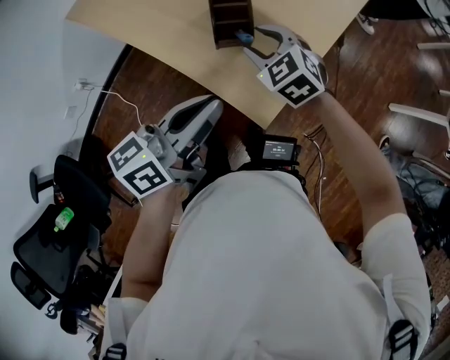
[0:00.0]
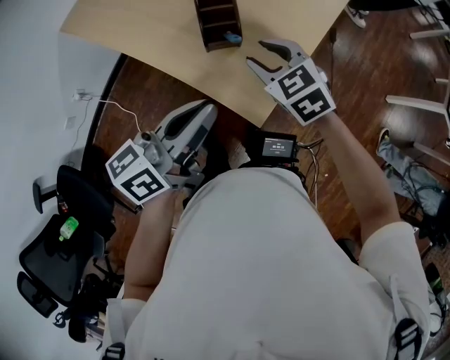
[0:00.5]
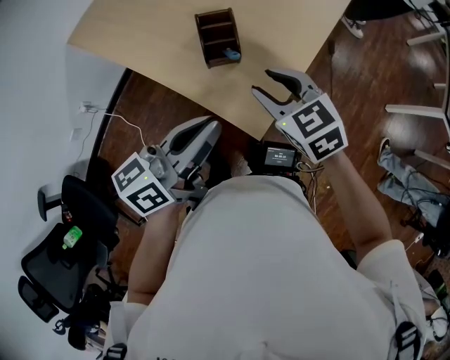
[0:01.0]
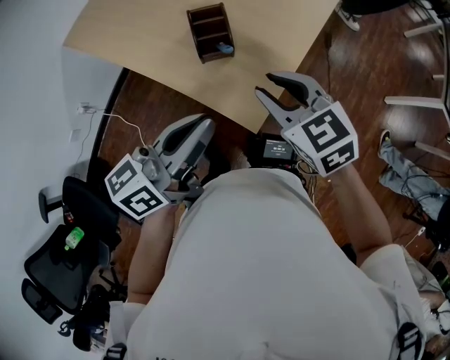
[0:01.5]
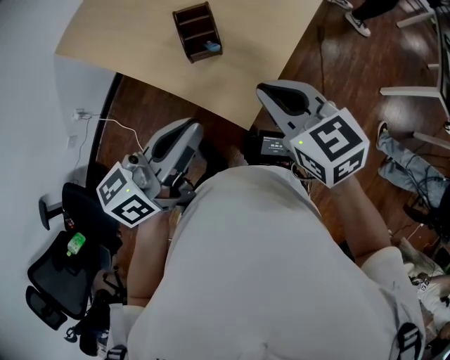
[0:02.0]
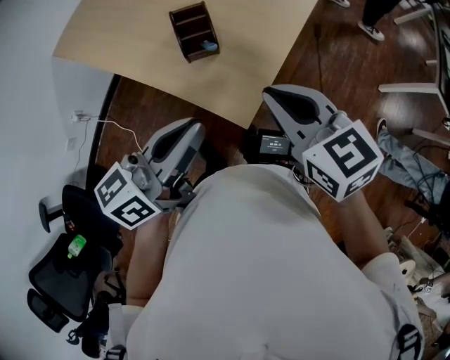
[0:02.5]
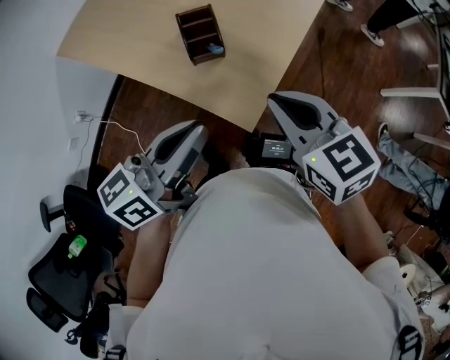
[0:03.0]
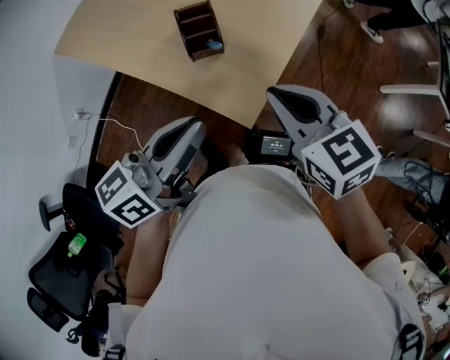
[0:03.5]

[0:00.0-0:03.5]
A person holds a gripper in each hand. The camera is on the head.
0:00.0 to 0:02.0: The left gripper changes place by about 5 cm. Meanwhile the right gripper goes approximately 20 cm backward, upward and to the right, changes its angle by about 30 degrees, and closes its fingers.
0:02.0 to 0:03.5: The grippers move only a little.

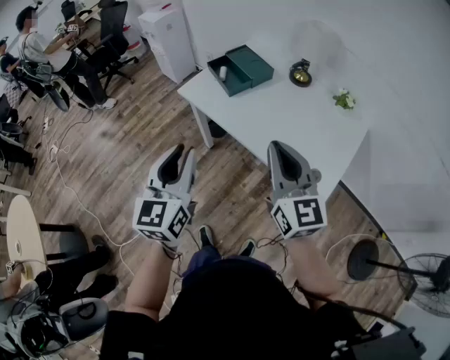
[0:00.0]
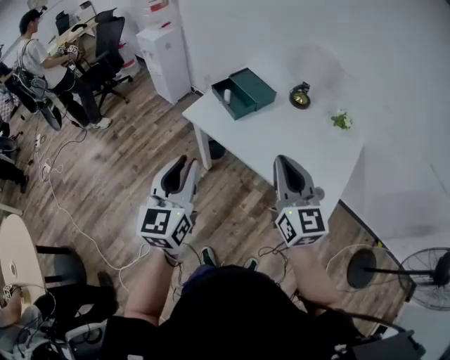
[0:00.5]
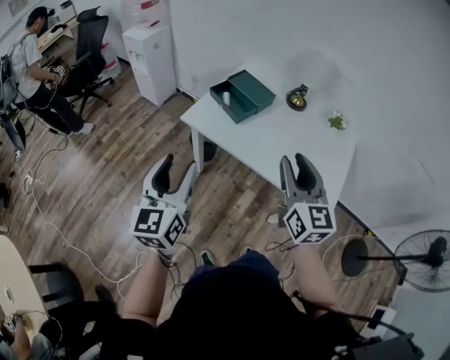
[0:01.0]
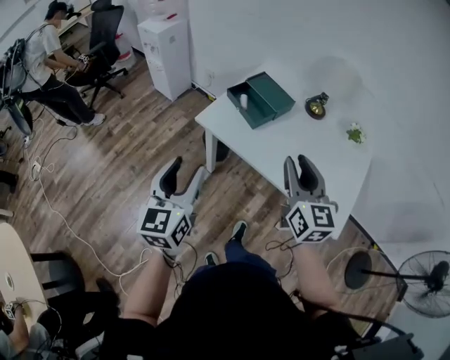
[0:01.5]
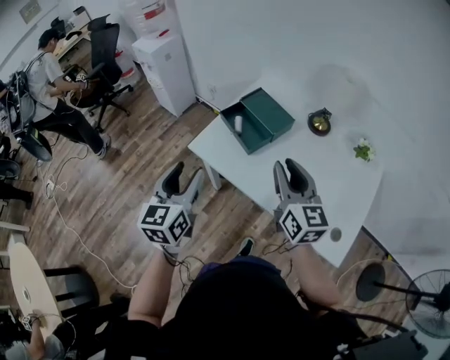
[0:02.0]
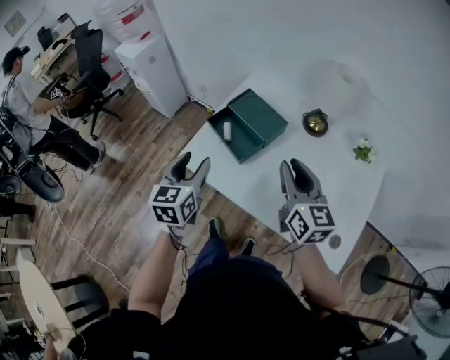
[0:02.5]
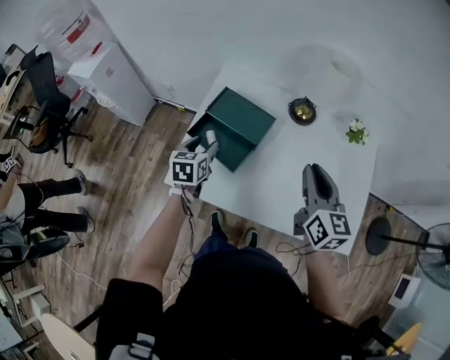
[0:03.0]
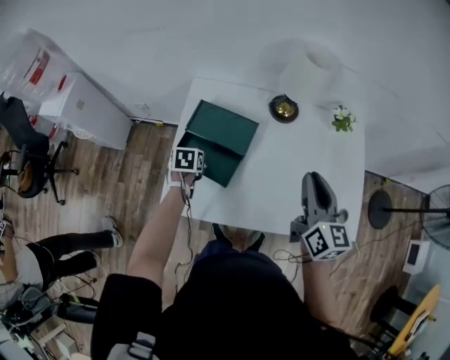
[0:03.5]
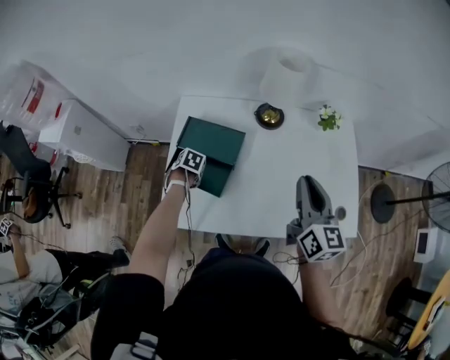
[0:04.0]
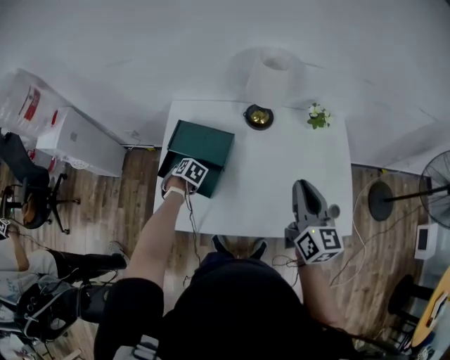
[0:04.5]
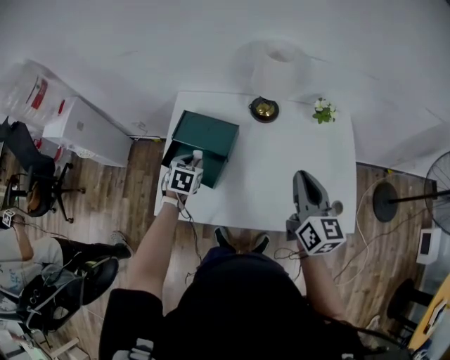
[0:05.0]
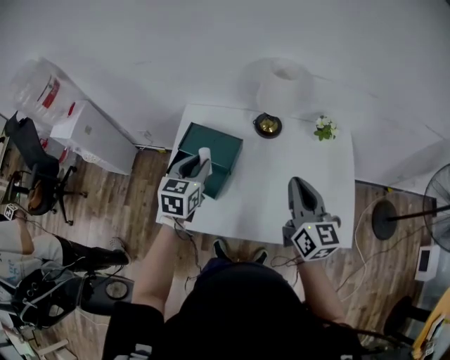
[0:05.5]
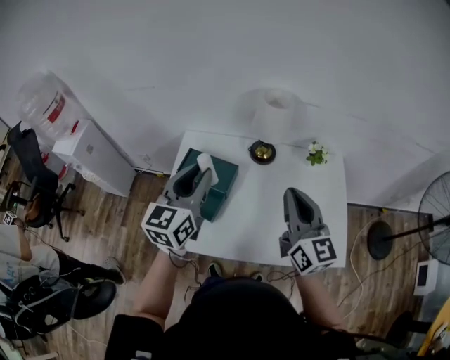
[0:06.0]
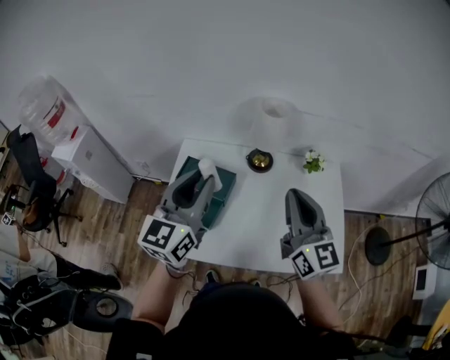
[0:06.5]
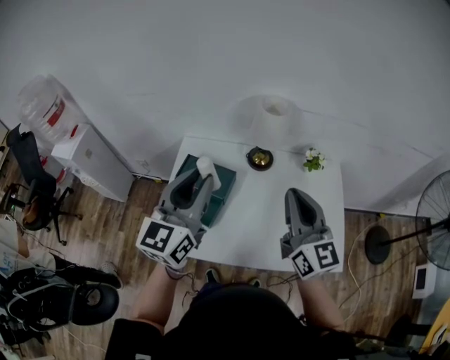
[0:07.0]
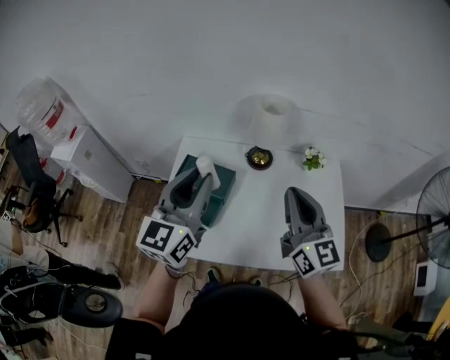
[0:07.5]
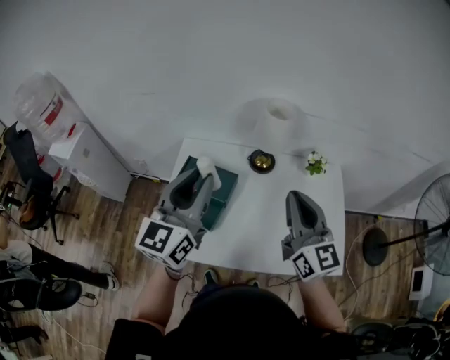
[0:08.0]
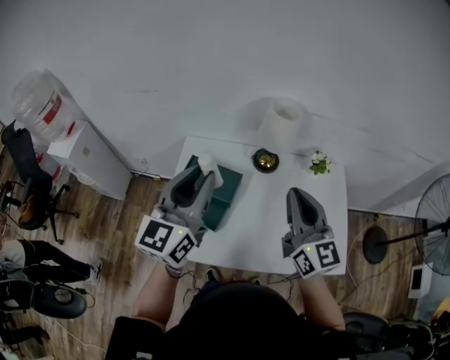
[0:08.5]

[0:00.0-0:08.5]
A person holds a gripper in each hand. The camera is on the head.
0:00.0 to 0:02.0: Both grippers move forward and to the left, roughly 30 cm. The left gripper opens. Meanwhile the right gripper opens its fingers.
0:02.0 to 0:04.0: The right gripper shifts by approximately 20 cm, and changes its angle by some 40 degrees. The left gripper moves approximately 50 cm, and tilts its fingers some 70 degrees downward.
0:04.0 to 0:06.5: The left gripper heads upward, covering roughly 50 cm, angles its fingers upward, by about 90 degrees, and closes; the right gripper is displaced upward by some 15 cm, and rotates some 20 degrees.
0:06.5 to 0:08.5: The right gripper changes place by about 5 cm.

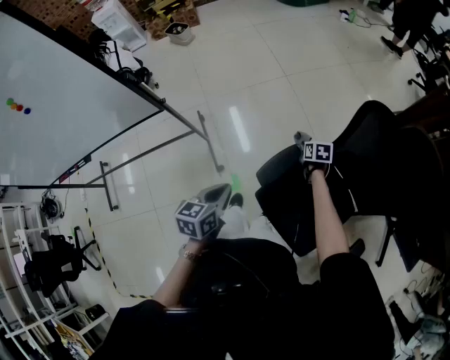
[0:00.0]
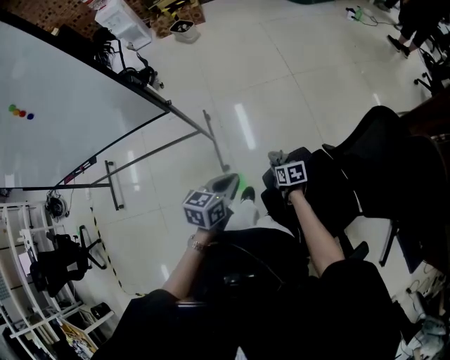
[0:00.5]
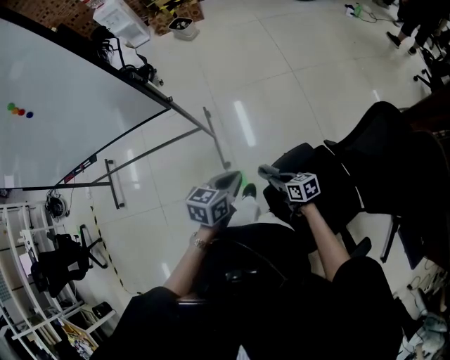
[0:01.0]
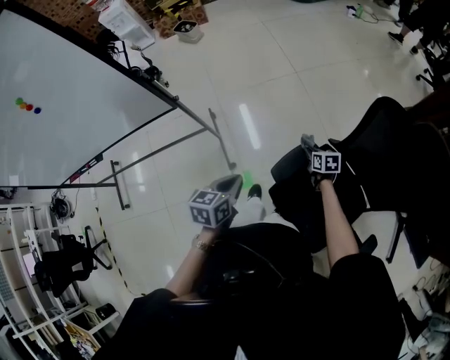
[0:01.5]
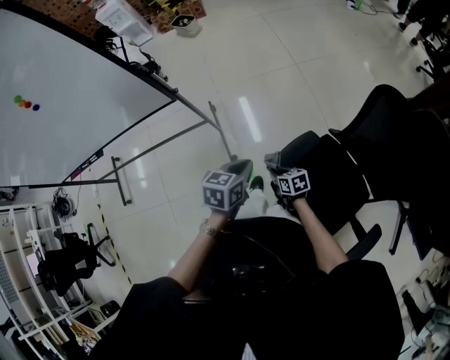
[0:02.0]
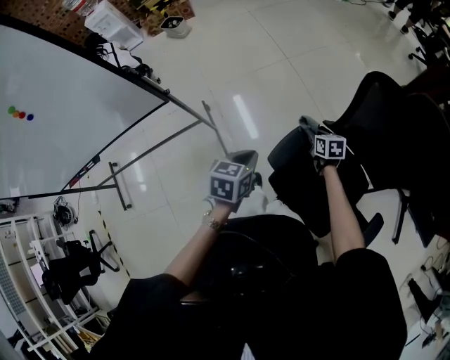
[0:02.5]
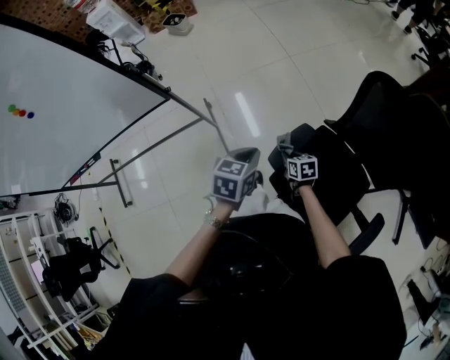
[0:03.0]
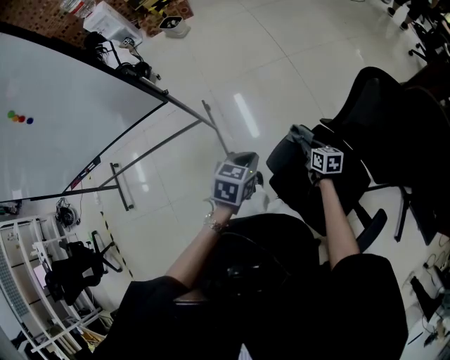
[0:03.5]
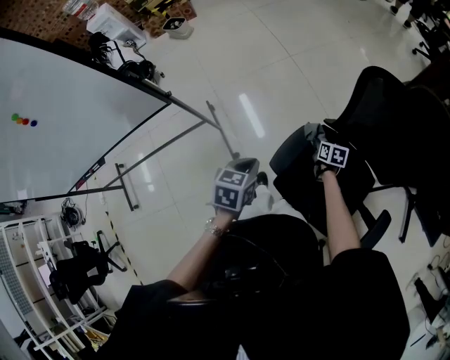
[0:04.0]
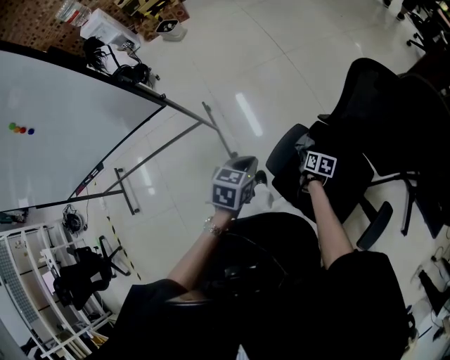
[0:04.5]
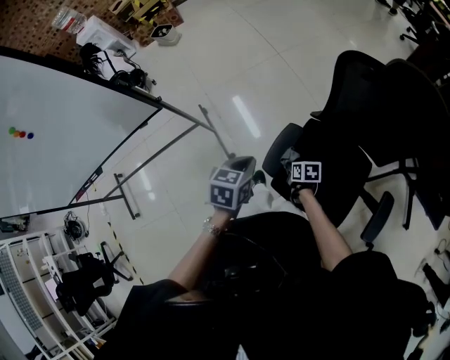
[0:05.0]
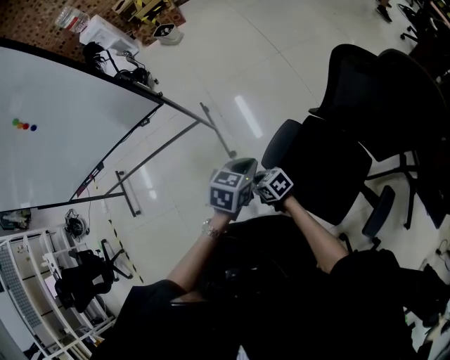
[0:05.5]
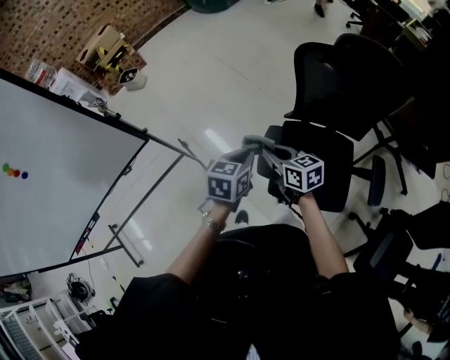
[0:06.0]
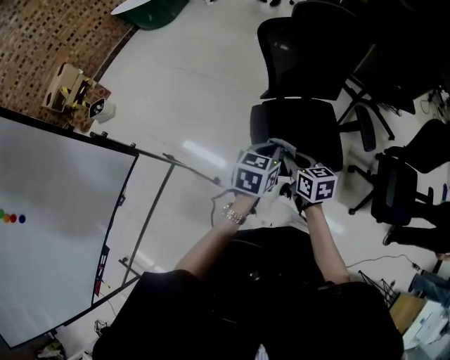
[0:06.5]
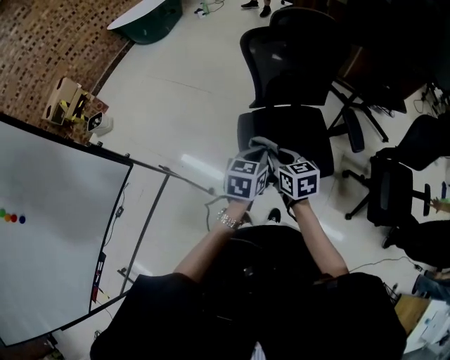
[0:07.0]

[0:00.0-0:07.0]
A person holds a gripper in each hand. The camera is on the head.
0:00.0 to 0:02.0: The right gripper moves left and right over roughly 25 cm, changing direction 2 times, and rotates roughly 30 degrees.
0:02.0 to 0:03.5: The right gripper swings left and right, some 20 cm each way, with 2 reversals, and rotates approximately 20 degrees.
0:03.5 to 0:05.0: The right gripper moves backward and downward, about 15 cm, and changes its angle by roughly 20 degrees.
0:05.0 to 0:07.0: The right gripper goes some 30 cm upward, and changes its angle by approximately 50 degrees, while the left gripper moves approximately 15 cm, and rotates some 40 degrees.

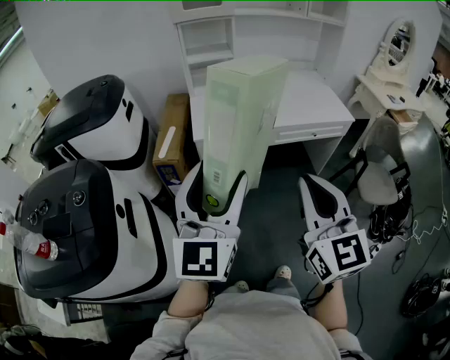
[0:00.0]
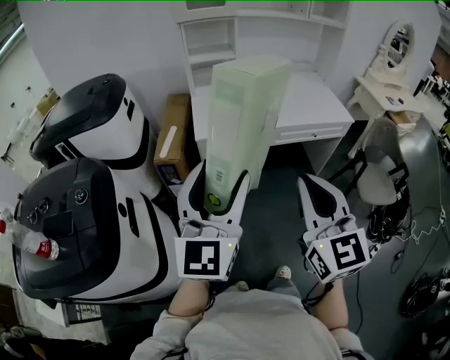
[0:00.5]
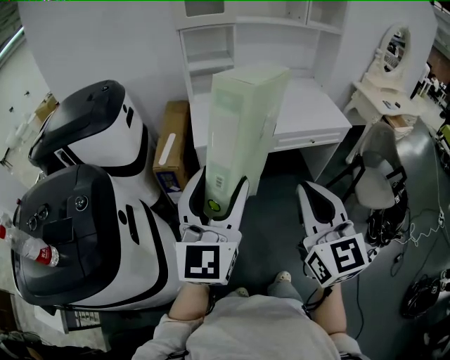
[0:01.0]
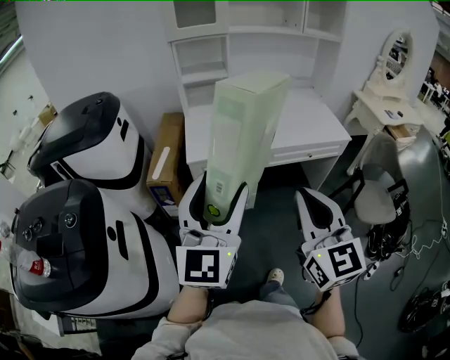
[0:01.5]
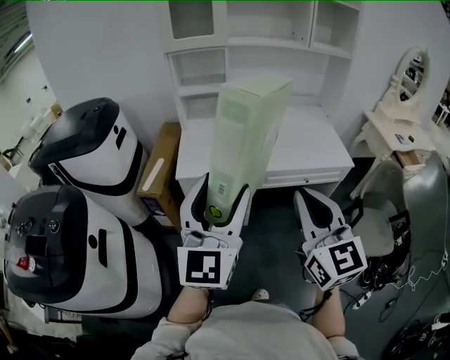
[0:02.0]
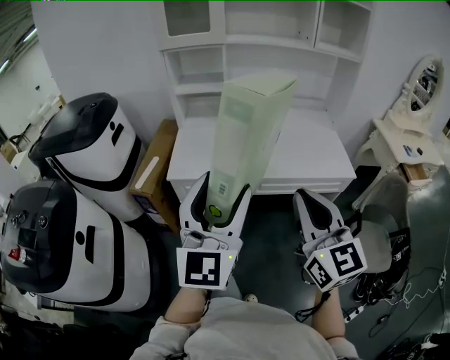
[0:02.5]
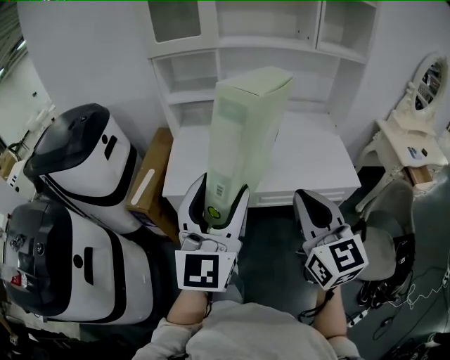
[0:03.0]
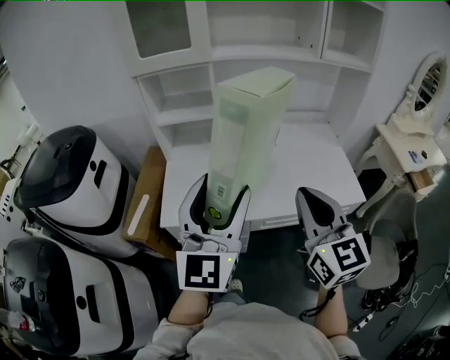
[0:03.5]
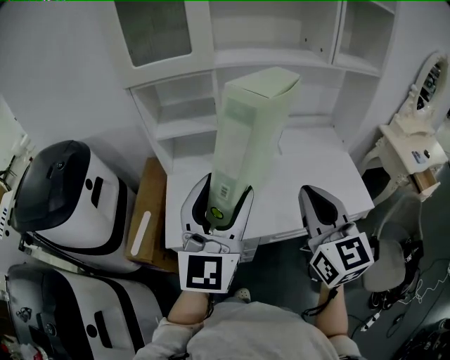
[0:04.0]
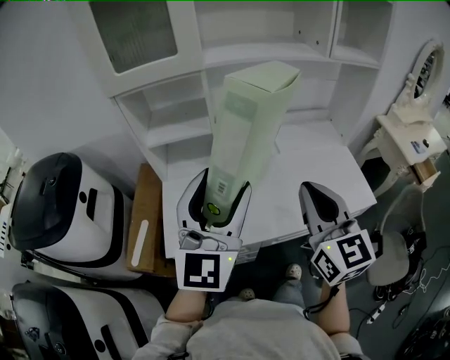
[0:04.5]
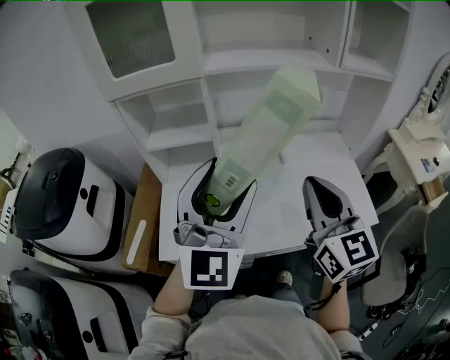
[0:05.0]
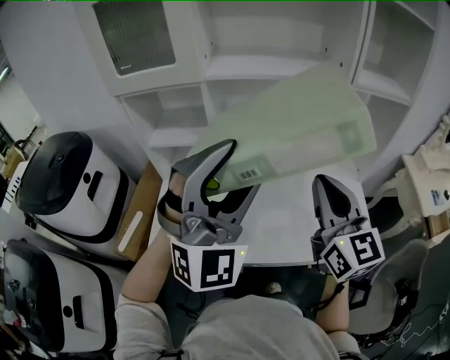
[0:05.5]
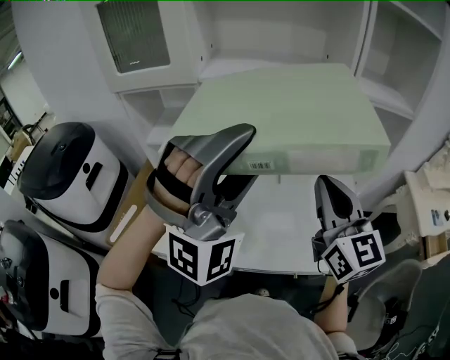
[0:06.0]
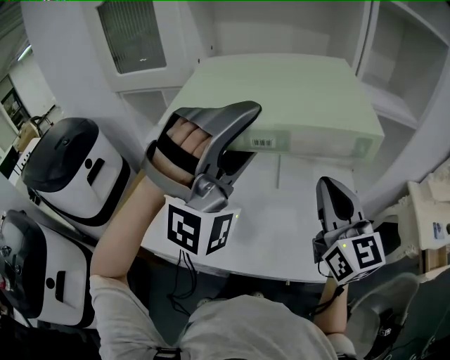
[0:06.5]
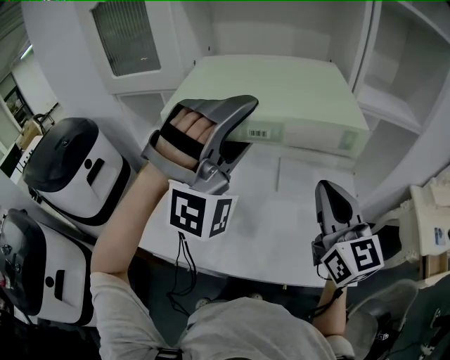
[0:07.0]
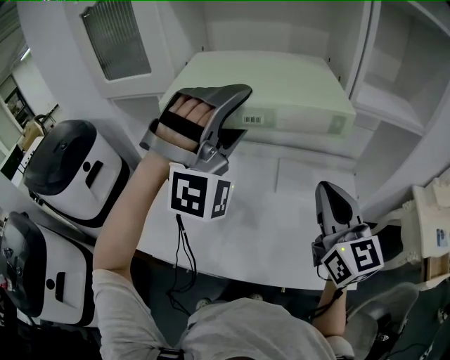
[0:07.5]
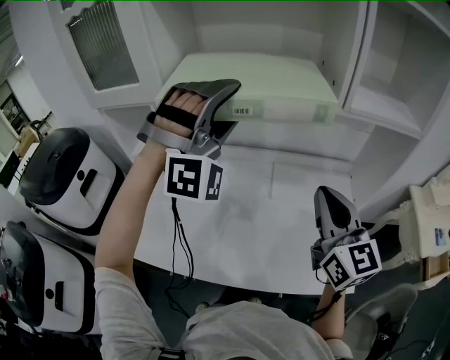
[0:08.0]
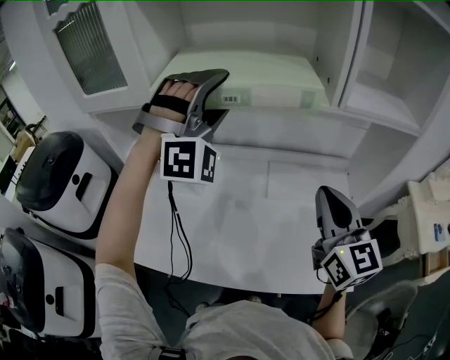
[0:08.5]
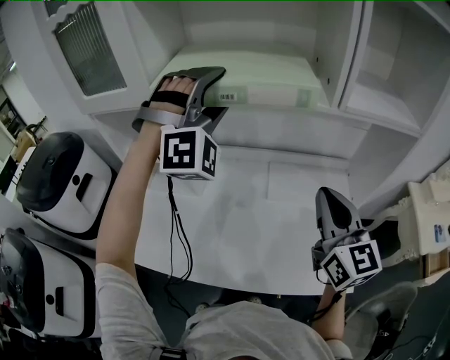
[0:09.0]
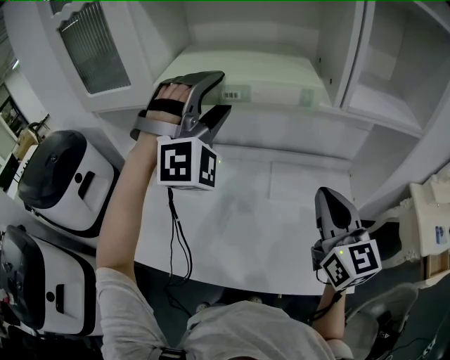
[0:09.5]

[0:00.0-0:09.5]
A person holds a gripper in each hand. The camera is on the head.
0:00.0 to 0:02.0: The right gripper heads forward and to the right, covering about 20 cm. Meanwhile the left gripper travels to the right and forward by about 20 cm.
0:02.0 to 0:04.0: The two grippers go some 35 cm forward.
0:04.0 to 0:05.5: The right gripper travels forward and to the right by some 20 cm. Meanwhile the left gripper shifts about 15 cm to the right, forward and upward, and rotates around the line of its fingers by roughly 50 degrees, clockwise from behind.
0:05.5 to 0:07.5: The left gripper heads forward and to the right, covering some 20 cm, and turns by roughly 40 degrees, while the right gripper moves to the right and forward, roughly 10 cm.
0:07.5 to 0:09.5: The left gripper shifts about 10 cm forward.
